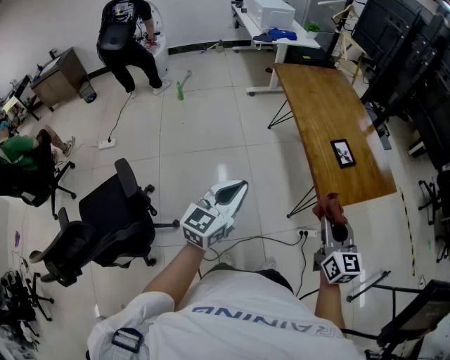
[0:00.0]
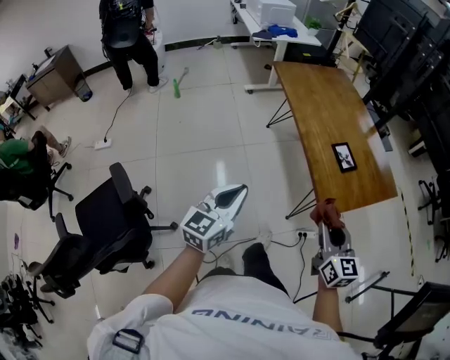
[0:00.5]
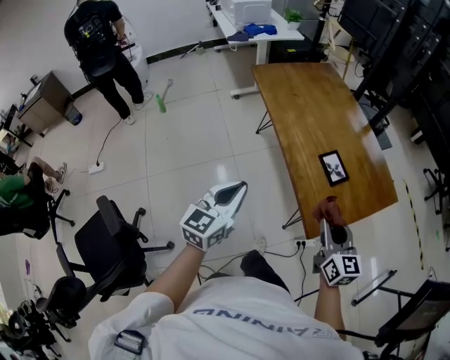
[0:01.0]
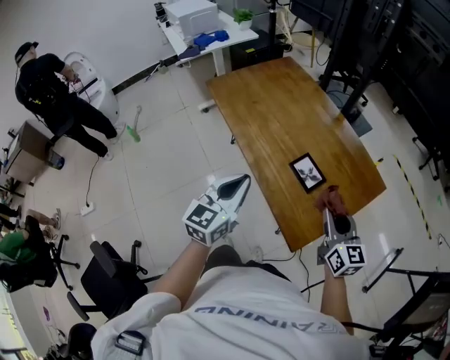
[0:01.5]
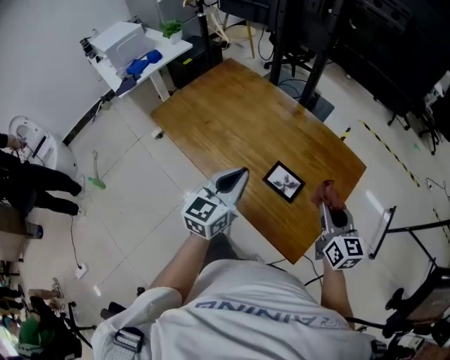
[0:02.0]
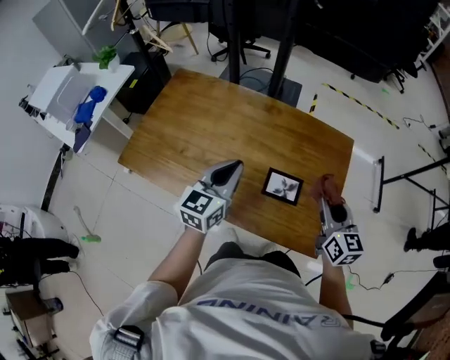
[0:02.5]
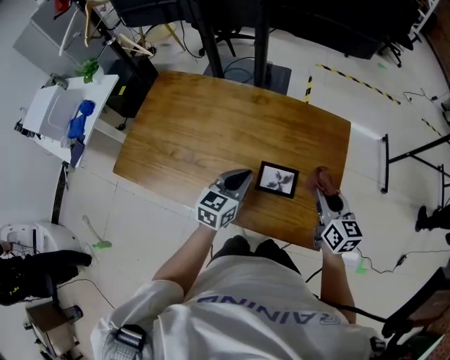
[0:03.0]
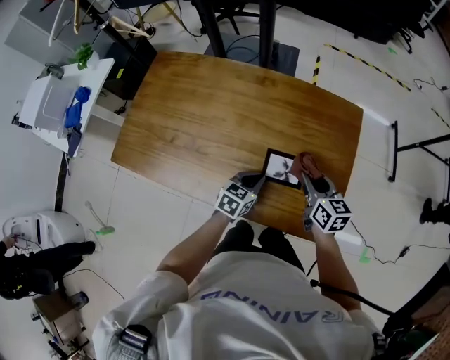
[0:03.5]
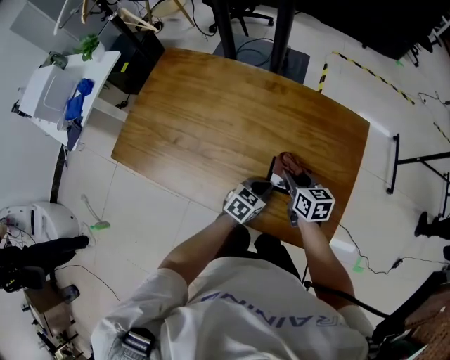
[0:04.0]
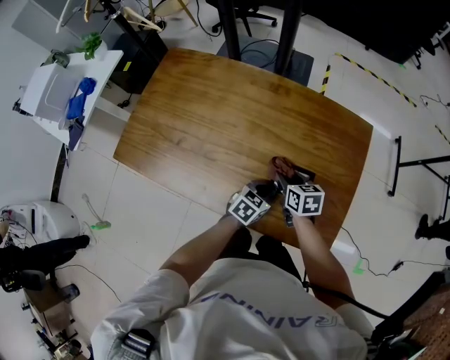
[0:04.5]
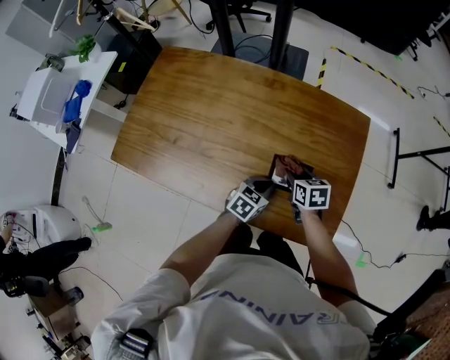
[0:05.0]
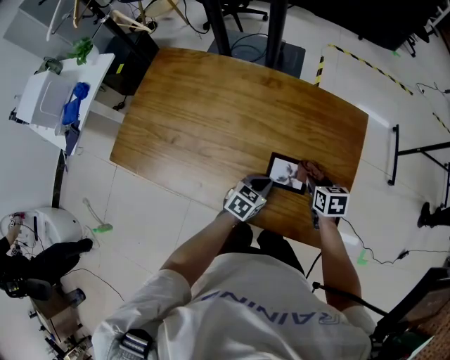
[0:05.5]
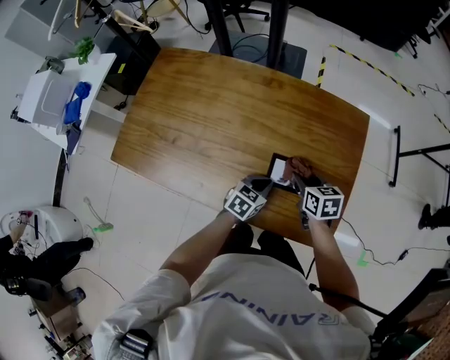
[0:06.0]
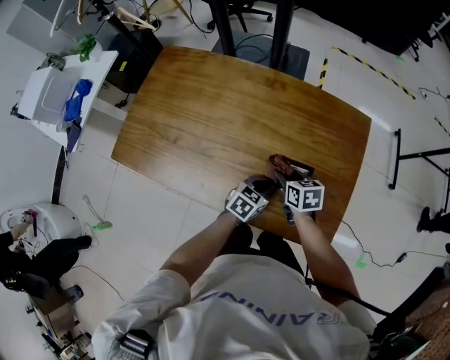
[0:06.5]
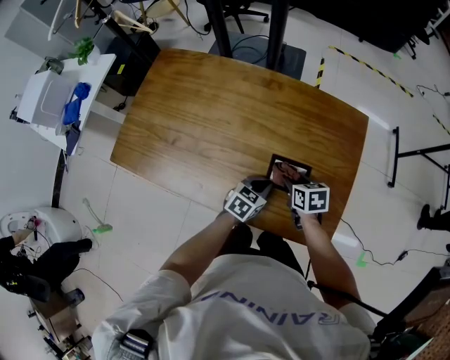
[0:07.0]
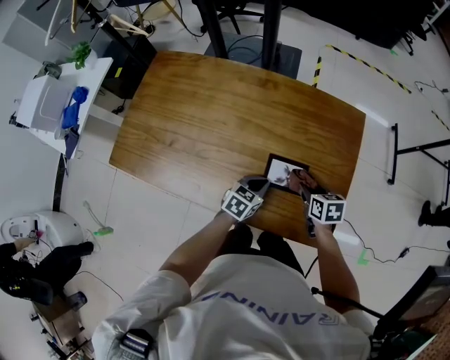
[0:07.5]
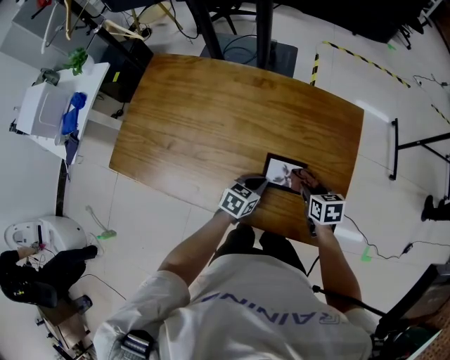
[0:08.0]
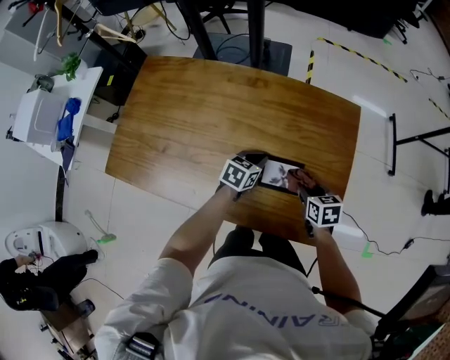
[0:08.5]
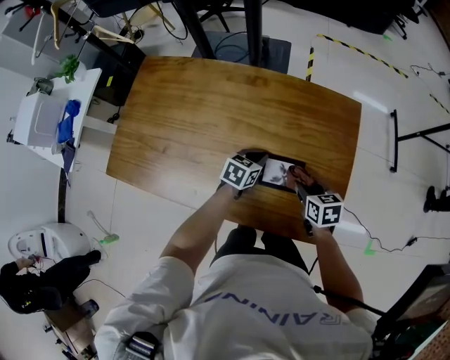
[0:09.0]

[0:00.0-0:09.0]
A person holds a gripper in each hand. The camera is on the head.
0:00.0 to 0:02.0: The left gripper ends up roughly 50 cm from where it was, and rotates approximately 30 degrees, while the right gripper changes place by roughly 35 cm, and swivels about 30 degrees.
0:02.0 to 0:04.5: The two grippers go some 25 cm downward. The left gripper points its fingers about 30 degrees further downward; the right gripper swivels some 40 degrees.
0:04.5 to 0:07.0: The right gripper swings left and right, roughly 15 cm each way, with 2 reversals.
0:07.0 to 0:09.0: The right gripper shifts about 5 cm to the right. The left gripper shifts about 10 cm forward.

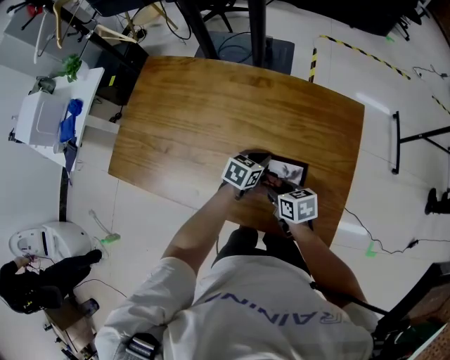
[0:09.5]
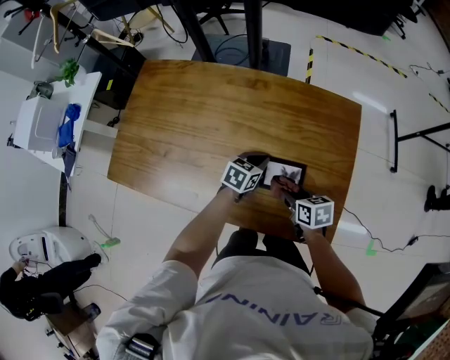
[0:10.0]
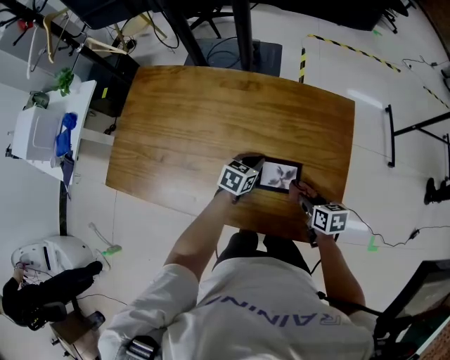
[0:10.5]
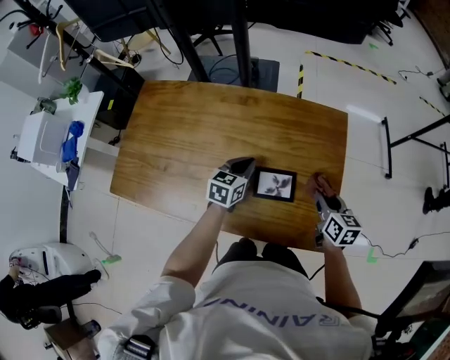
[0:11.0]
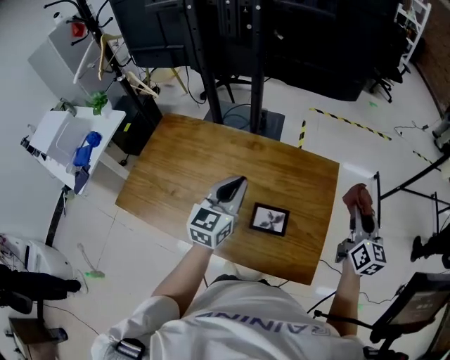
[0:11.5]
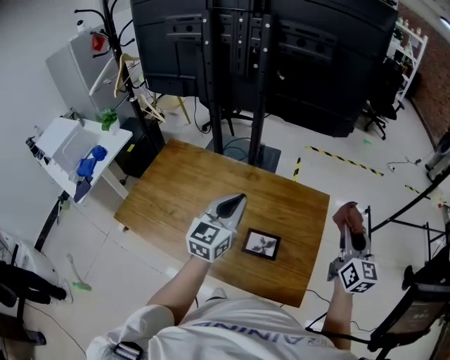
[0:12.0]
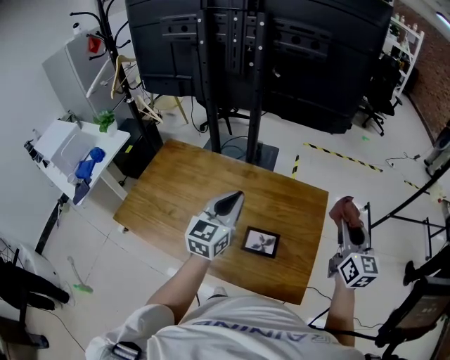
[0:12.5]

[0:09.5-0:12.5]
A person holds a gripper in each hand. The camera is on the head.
0:09.5 to 0:11.0: The left gripper heads upward, covering about 10 cm; the right gripper is displaced to the right and upward by some 20 cm, and swivels some 30 degrees.
0:11.0 to 0:12.5: Both grippers travel together upward, some 25 cm. The right gripper swivels roughly 30 degrees. The left gripper turns by roughly 30 degrees.

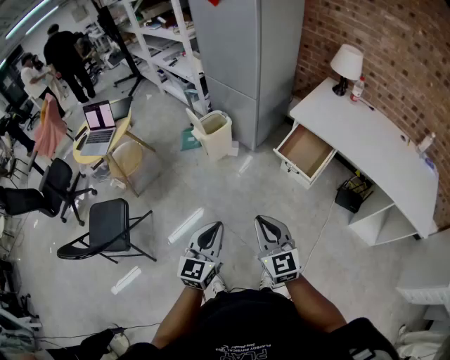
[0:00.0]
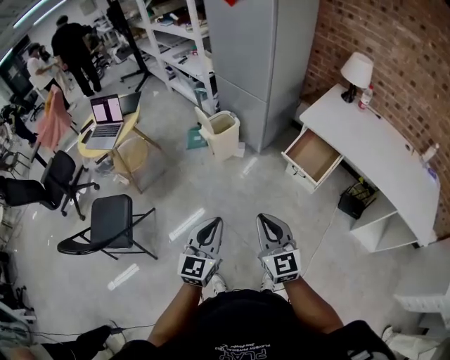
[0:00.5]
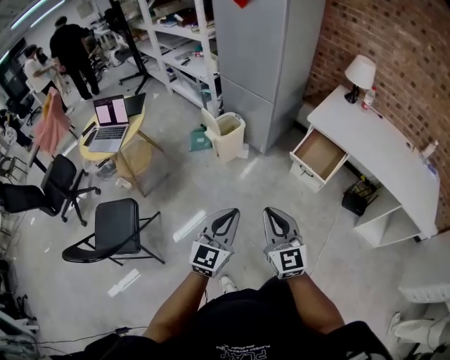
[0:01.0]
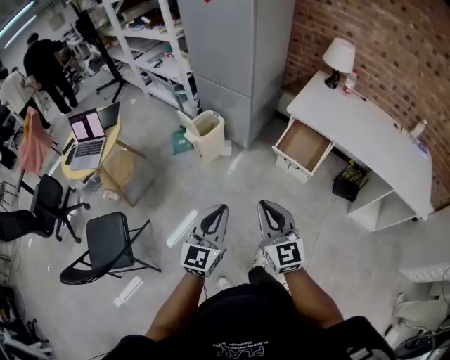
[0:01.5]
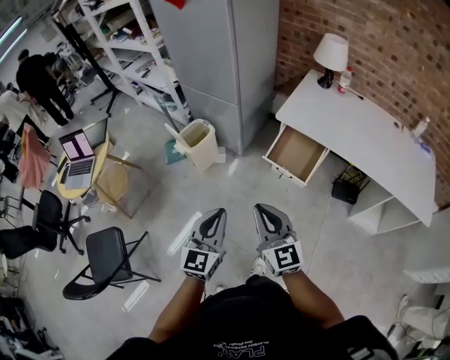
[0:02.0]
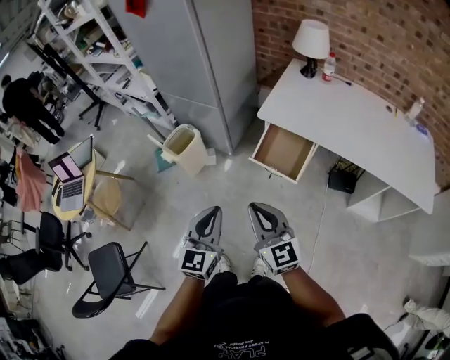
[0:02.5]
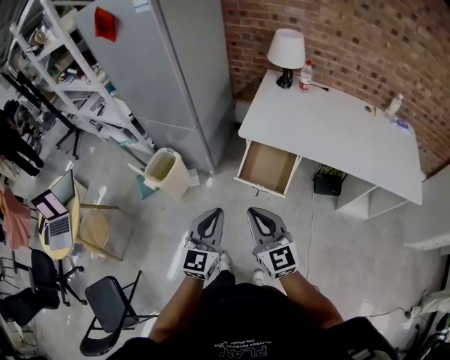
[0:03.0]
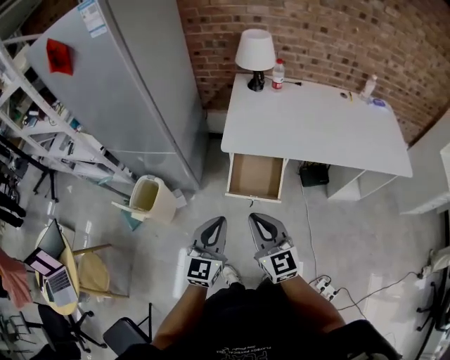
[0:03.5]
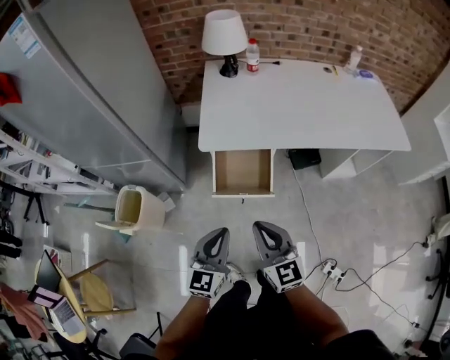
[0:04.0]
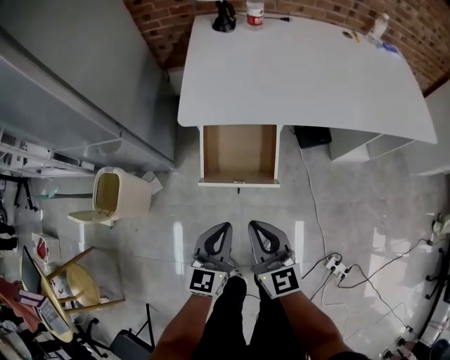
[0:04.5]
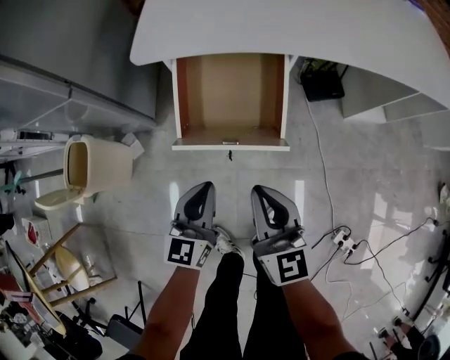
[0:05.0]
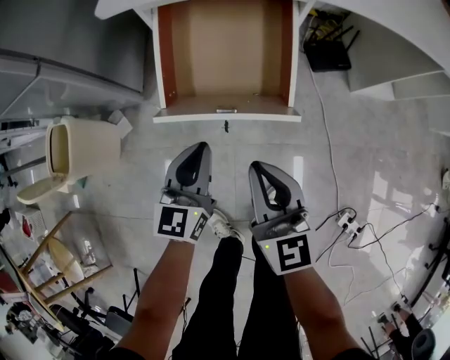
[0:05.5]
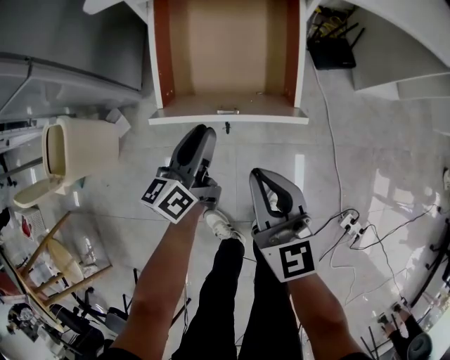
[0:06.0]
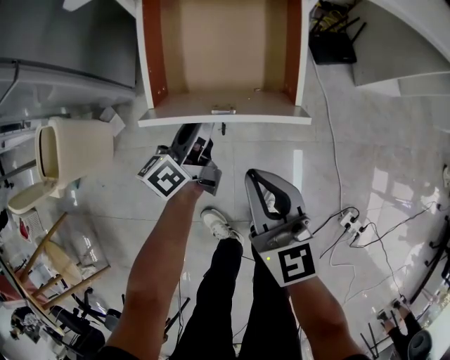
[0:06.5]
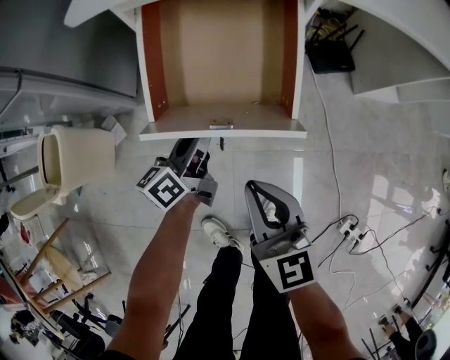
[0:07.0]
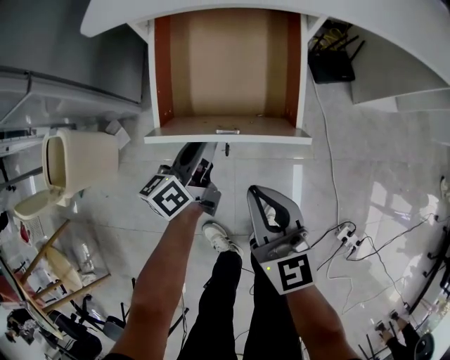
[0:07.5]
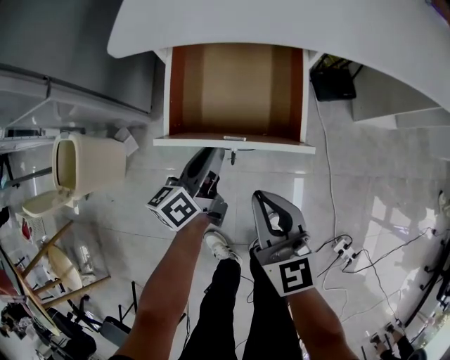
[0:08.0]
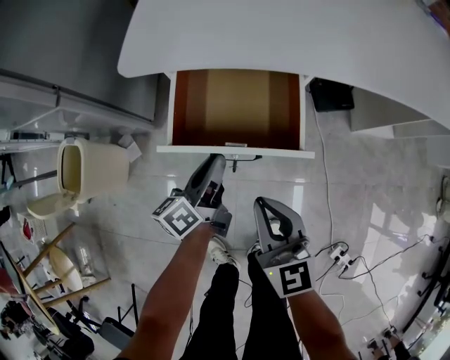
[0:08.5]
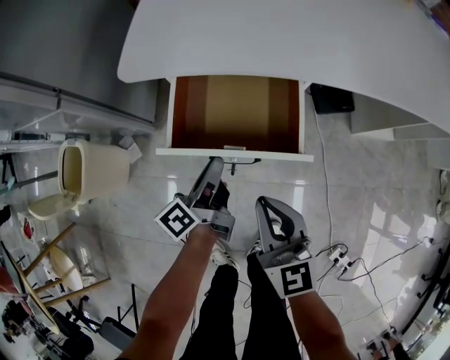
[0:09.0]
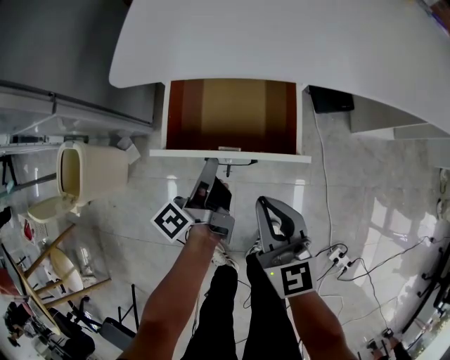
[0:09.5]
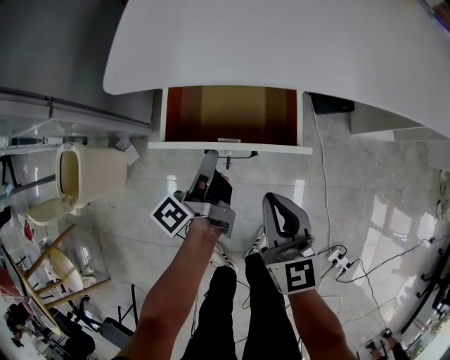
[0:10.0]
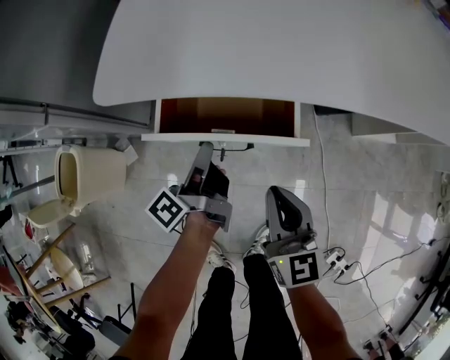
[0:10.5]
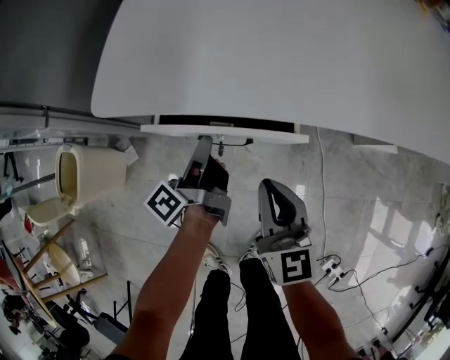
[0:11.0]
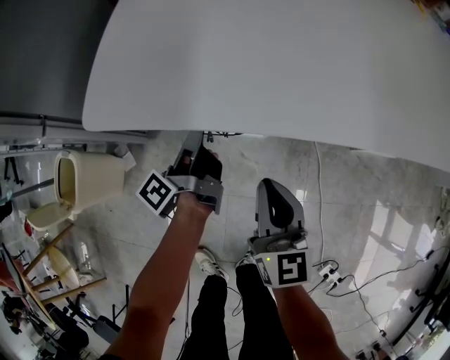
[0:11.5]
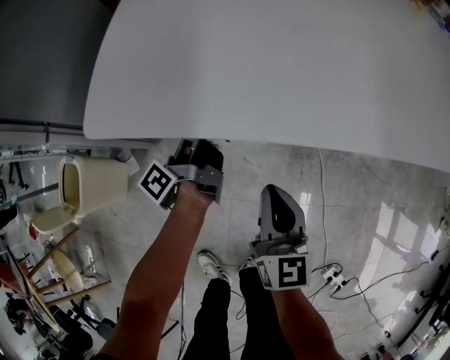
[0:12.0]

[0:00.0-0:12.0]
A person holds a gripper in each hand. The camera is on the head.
0:00.0 to 0:02.0: Both grippers travel together forward, roughly 15 cm.
0:02.0 to 0:04.0: The left gripper ends up some 30 cm from where it was, and turns by approximately 40 degrees, while the right gripper moves roughly 25 cm, and turns by about 30 degrees.
0:04.0 to 0:06.0: The grippers both shift downward by about 35 cm. The left gripper turns by some 40 degrees, and opens.
0:06.0 to 0:08.0: The left gripper changes place by approximately 5 cm.
0:08.0 to 0:10.0: The left gripper rotates roughly 40 degrees. The right gripper heads forward, covering about 5 cm.
0:10.0 to 0:12.0: The right gripper shifts some 10 cm forward and to the right. Meanwhile the left gripper is displaced forward by roughly 15 cm.

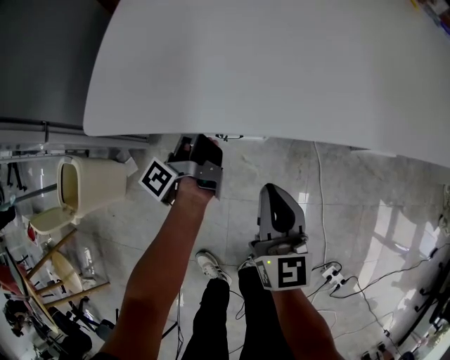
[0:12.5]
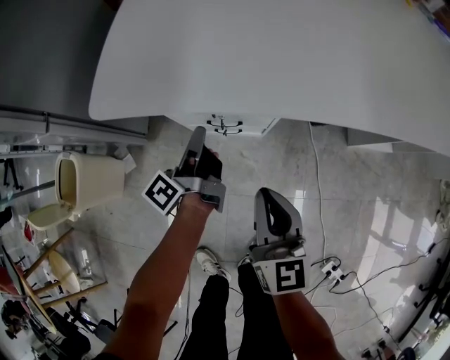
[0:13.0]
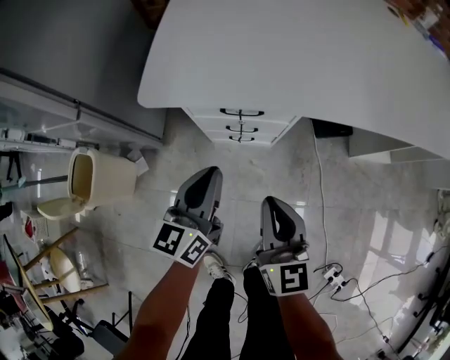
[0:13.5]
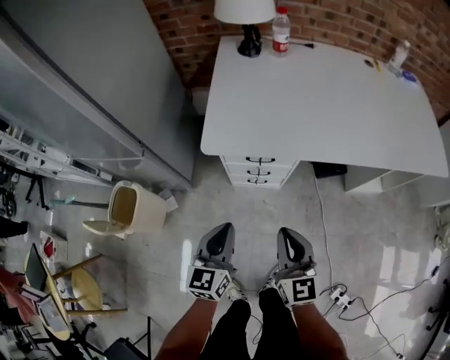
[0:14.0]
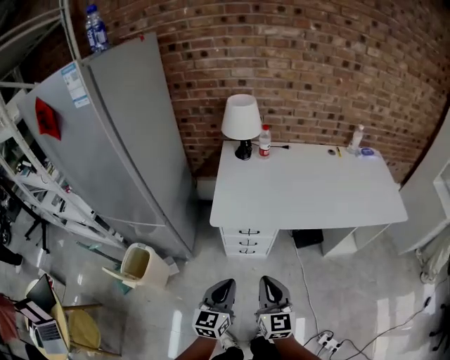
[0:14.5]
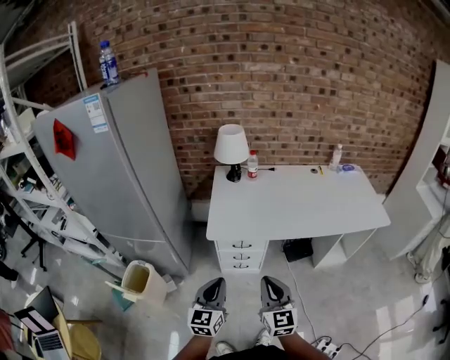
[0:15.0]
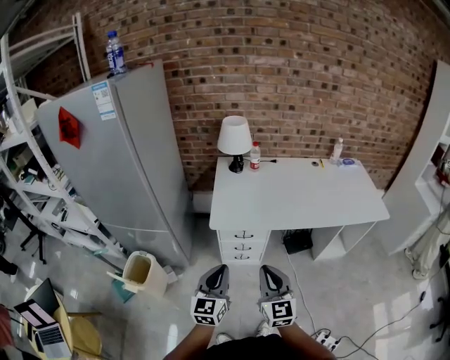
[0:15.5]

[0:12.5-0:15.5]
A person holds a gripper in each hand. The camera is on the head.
0:12.5 to 0:14.0: The left gripper heads backward and upward, covering some 35 cm, and twists some 80 degrees clockwise, seen from behind; the right gripper moves upward and backward, roughly 20 cm.
0:14.0 to 0:15.5: Both grippers move upward and backward, about 25 cm.
